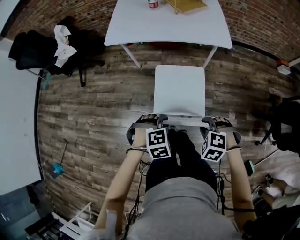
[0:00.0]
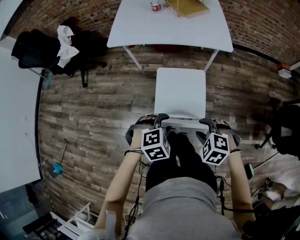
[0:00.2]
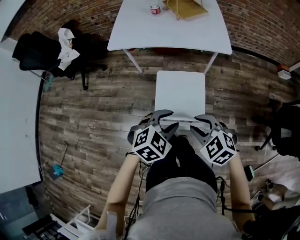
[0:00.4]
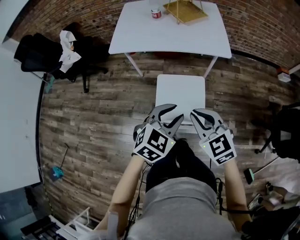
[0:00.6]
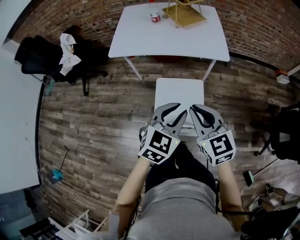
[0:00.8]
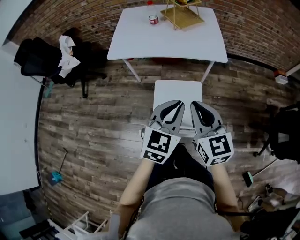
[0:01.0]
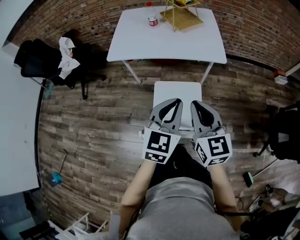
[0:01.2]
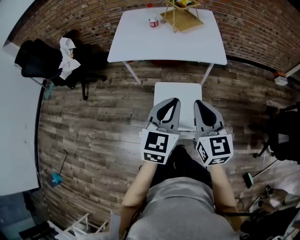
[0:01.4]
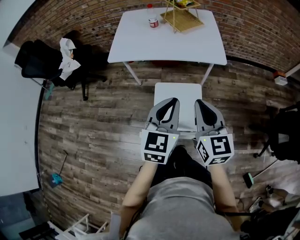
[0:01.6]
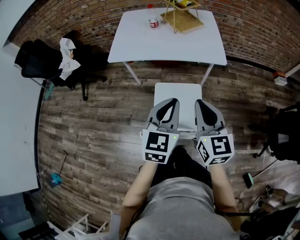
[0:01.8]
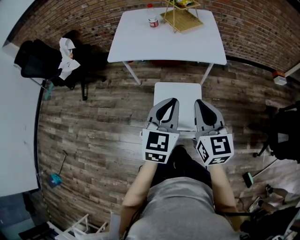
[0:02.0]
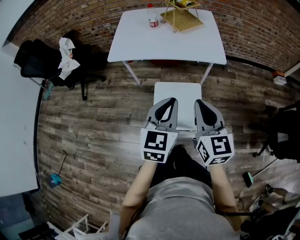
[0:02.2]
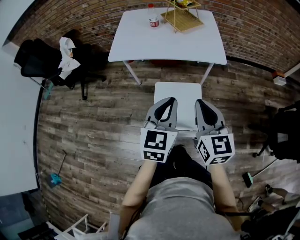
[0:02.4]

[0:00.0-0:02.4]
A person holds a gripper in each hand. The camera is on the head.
0:00.0 to 0:01.2: Both grippers move upward and forward, roughly 25 cm. The left gripper points its fingers some 50 degrees further upward, and closes, while the right gripper tips its fingers upward by about 60 degrees, and closes its fingers.
0:01.2 to 0:02.4: The grippers make only small movements.

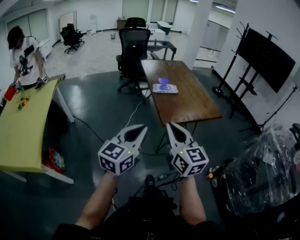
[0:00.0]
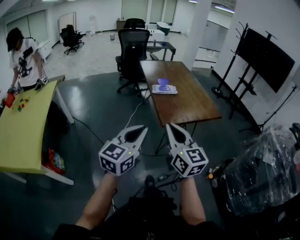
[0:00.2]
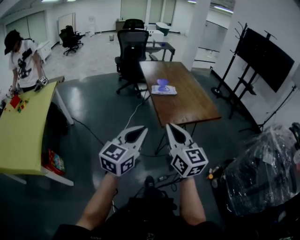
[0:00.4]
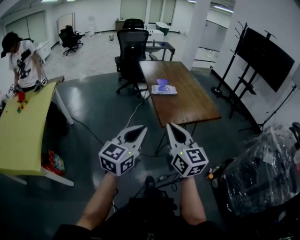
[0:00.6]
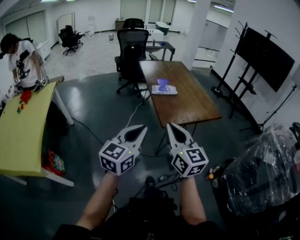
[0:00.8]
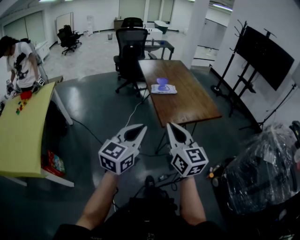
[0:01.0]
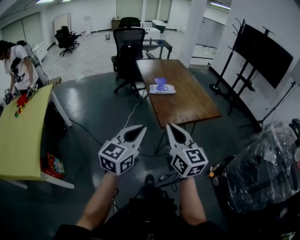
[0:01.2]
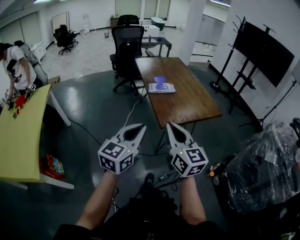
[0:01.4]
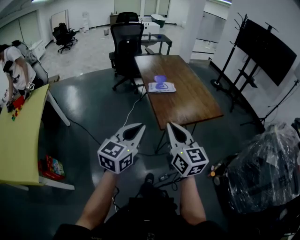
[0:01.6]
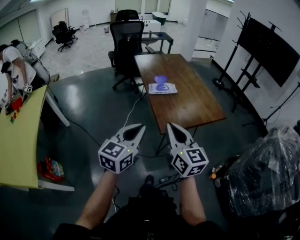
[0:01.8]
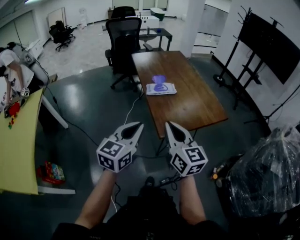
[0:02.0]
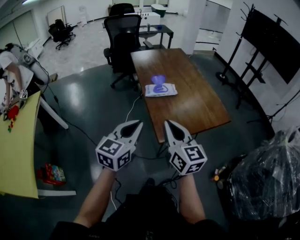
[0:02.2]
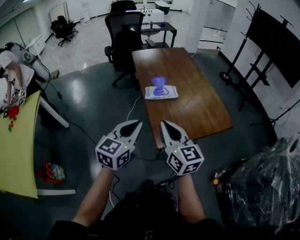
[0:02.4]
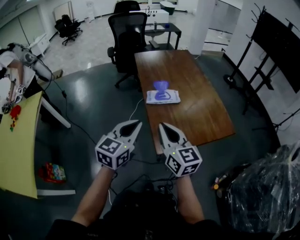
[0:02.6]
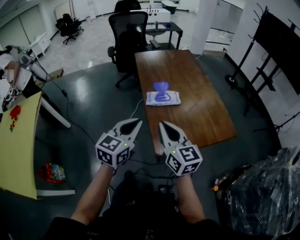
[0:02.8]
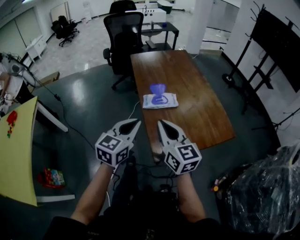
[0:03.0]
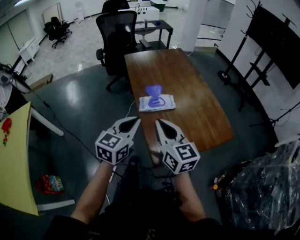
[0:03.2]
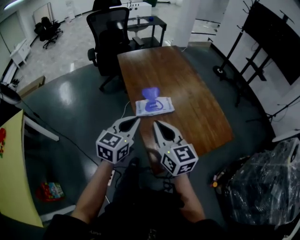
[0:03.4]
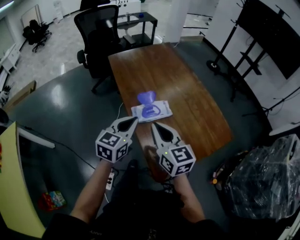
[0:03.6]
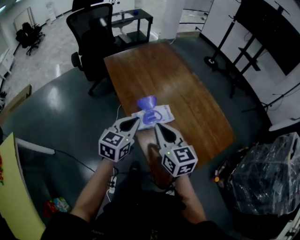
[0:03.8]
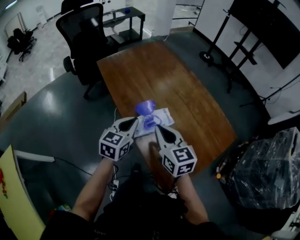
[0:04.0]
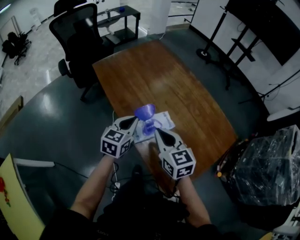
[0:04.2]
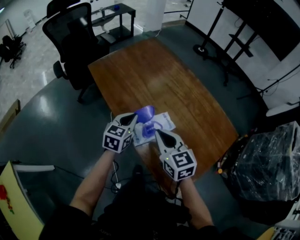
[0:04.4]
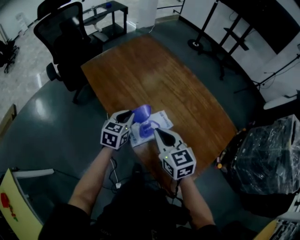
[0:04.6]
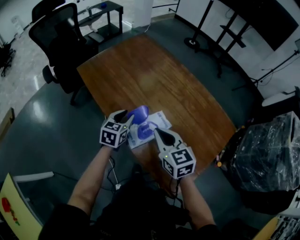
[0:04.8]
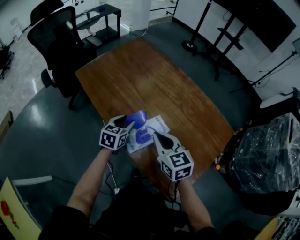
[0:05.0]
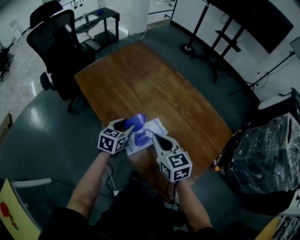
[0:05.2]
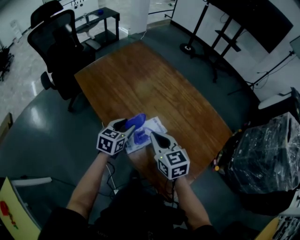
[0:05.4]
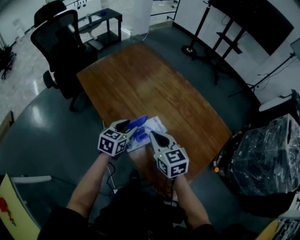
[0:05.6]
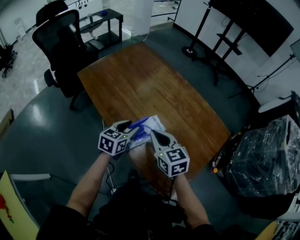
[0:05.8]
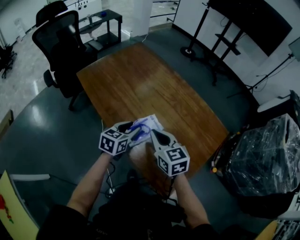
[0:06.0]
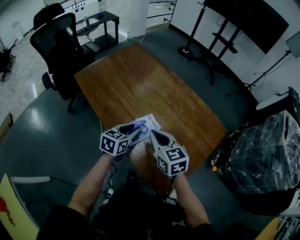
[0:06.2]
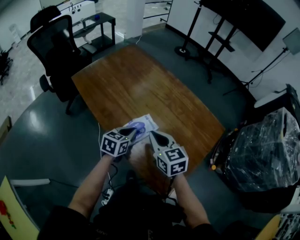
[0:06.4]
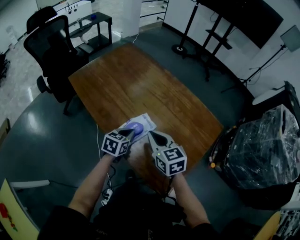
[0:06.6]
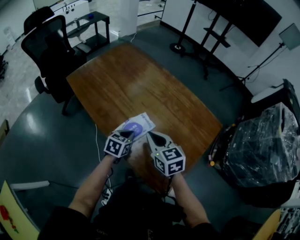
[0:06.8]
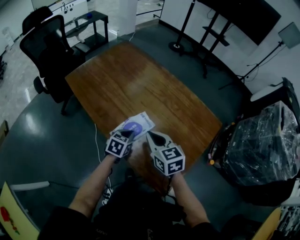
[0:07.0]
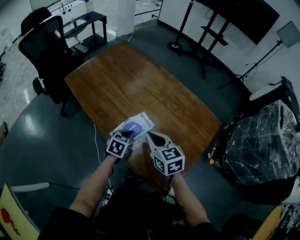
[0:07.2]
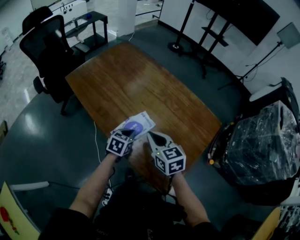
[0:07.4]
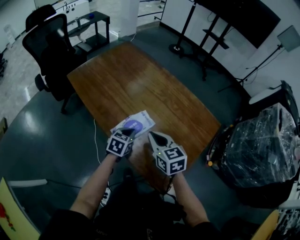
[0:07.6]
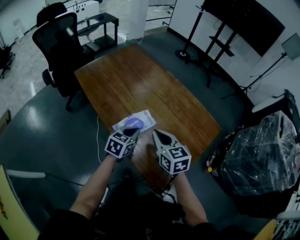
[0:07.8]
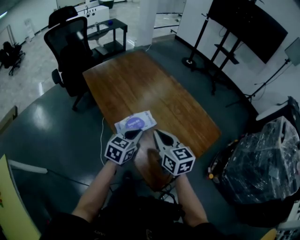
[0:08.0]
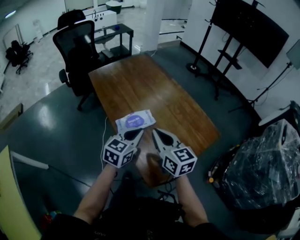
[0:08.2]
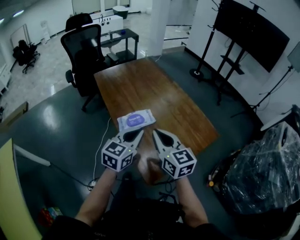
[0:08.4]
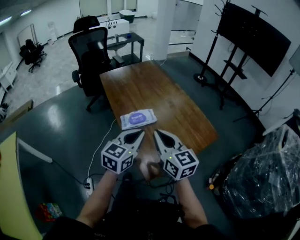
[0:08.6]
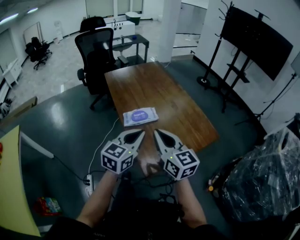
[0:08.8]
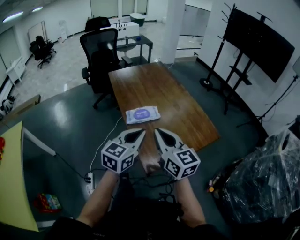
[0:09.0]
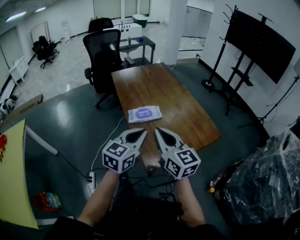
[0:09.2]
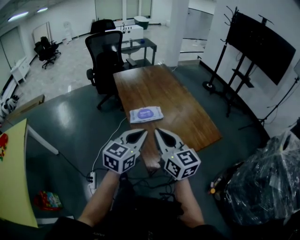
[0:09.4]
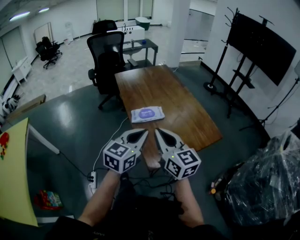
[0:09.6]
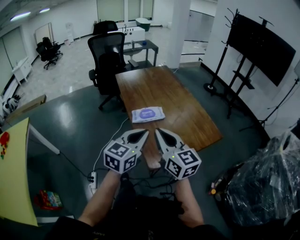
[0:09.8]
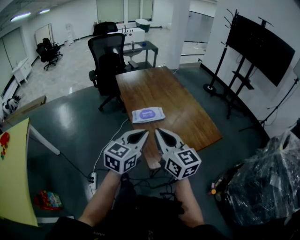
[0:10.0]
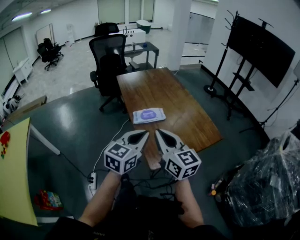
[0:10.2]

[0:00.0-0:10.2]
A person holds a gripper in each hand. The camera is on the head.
0:00.0 to 0:01.4: The left gripper moves forward, some 5 cm. The right gripper moves about 5 cm.
0:01.4 to 0:03.0: The grippers both shift forward by roughly 30 cm.
0:03.0 to 0:04.4: Both grippers travel together forward and downward, some 30 cm. The left gripper swivels approximately 20 degrees. The right gripper turns by about 30 degrees.
0:04.4 to 0:05.8: The left gripper ends up about 5 cm from where it was, and opens its fingers.
0:05.8 to 0:07.2: The left gripper shifts roughly 10 cm downward, and closes.
0:07.2 to 0:08.8: The left gripper moves upward and backward, approximately 30 cm, and tips its fingers upward by some 30 degrees. The right gripper goes some 25 cm backward and upward, and changes its angle by some 30 degrees.
0:08.8 to 0:10.2: The grippers both shift backward by approximately 5 cm.

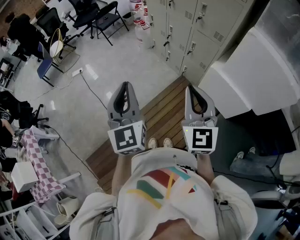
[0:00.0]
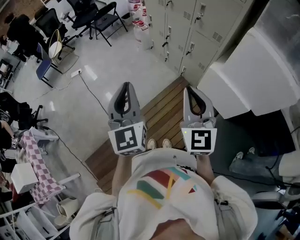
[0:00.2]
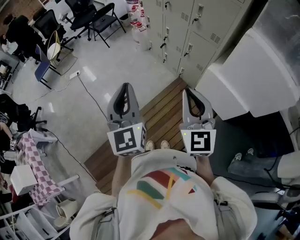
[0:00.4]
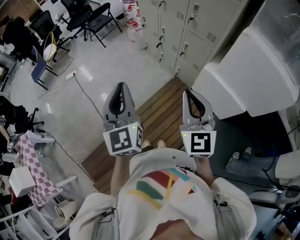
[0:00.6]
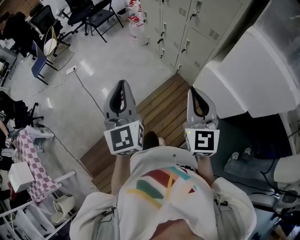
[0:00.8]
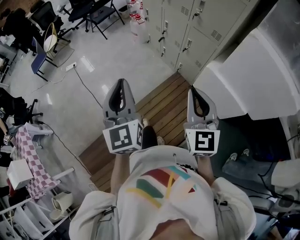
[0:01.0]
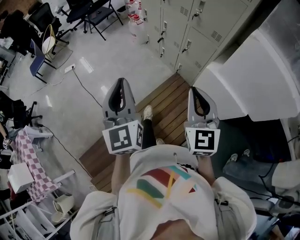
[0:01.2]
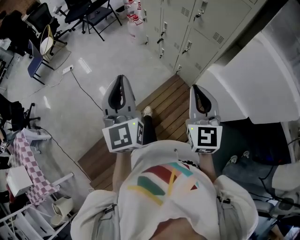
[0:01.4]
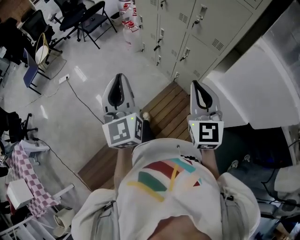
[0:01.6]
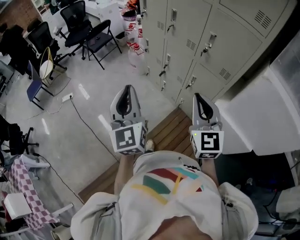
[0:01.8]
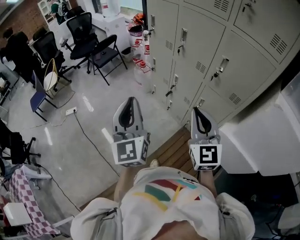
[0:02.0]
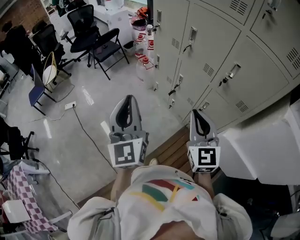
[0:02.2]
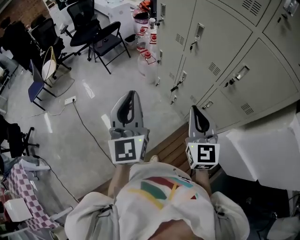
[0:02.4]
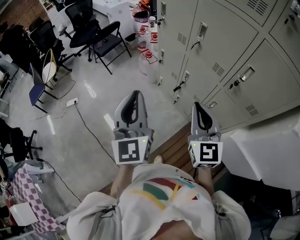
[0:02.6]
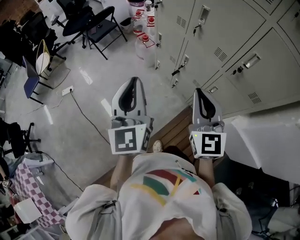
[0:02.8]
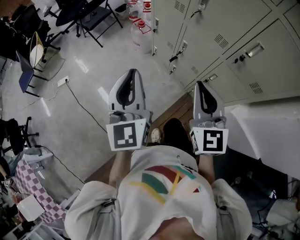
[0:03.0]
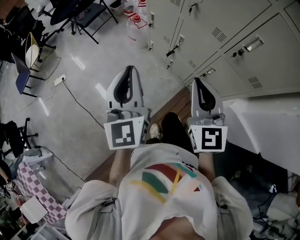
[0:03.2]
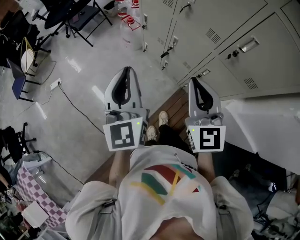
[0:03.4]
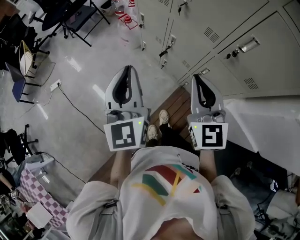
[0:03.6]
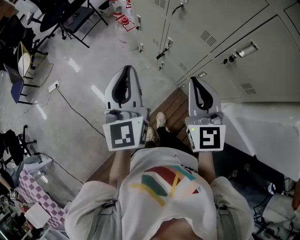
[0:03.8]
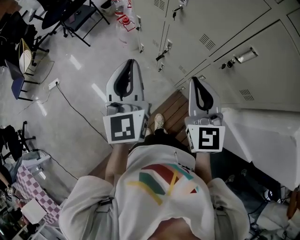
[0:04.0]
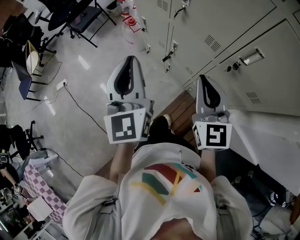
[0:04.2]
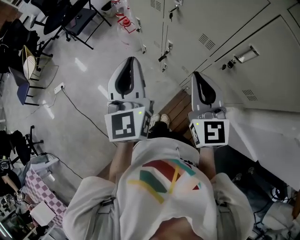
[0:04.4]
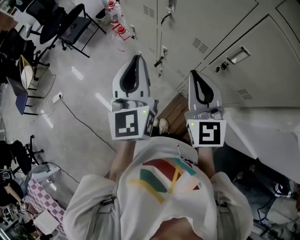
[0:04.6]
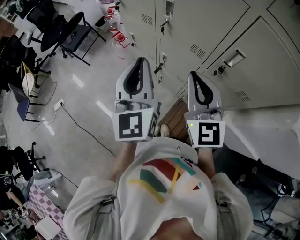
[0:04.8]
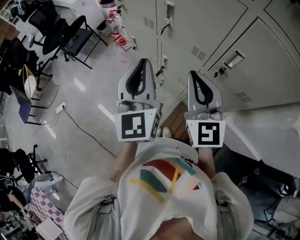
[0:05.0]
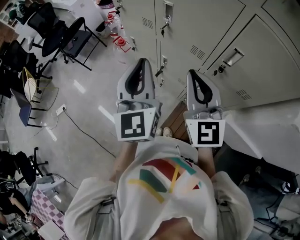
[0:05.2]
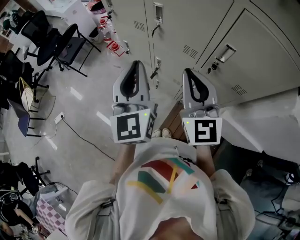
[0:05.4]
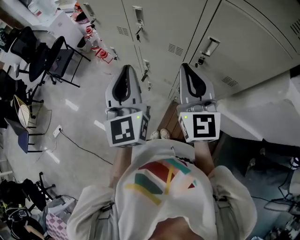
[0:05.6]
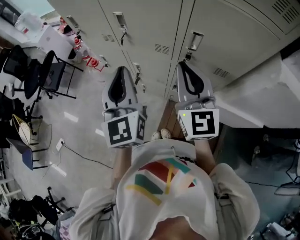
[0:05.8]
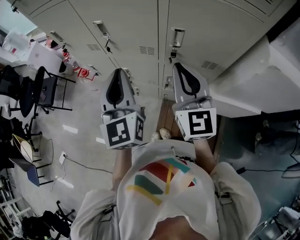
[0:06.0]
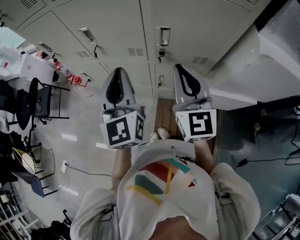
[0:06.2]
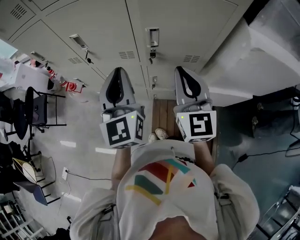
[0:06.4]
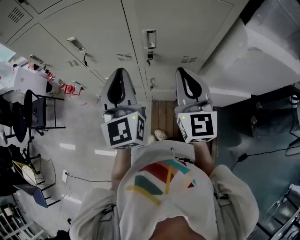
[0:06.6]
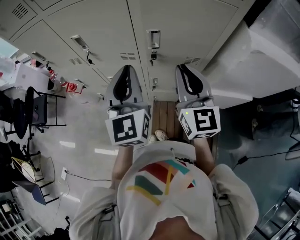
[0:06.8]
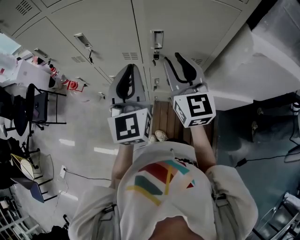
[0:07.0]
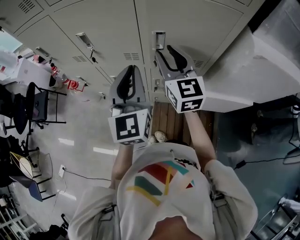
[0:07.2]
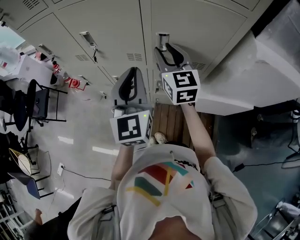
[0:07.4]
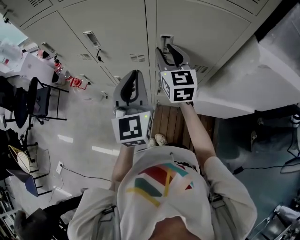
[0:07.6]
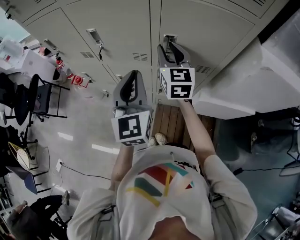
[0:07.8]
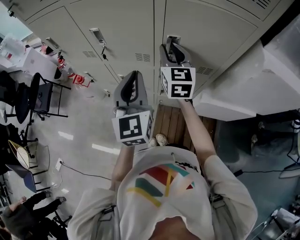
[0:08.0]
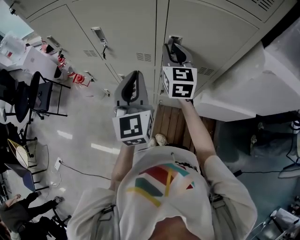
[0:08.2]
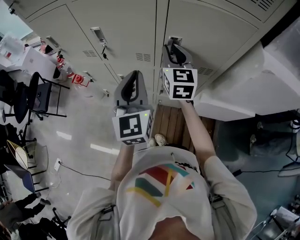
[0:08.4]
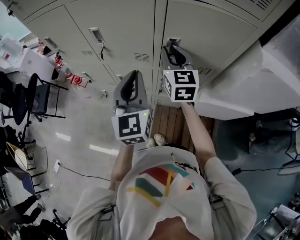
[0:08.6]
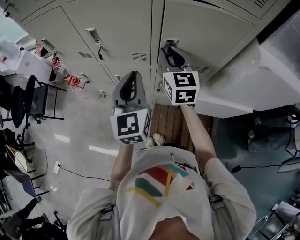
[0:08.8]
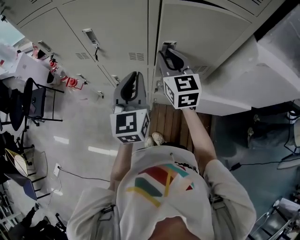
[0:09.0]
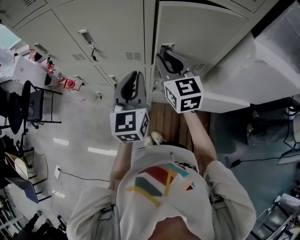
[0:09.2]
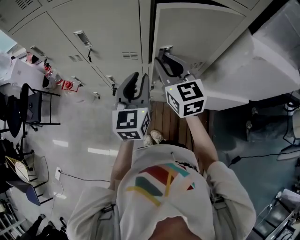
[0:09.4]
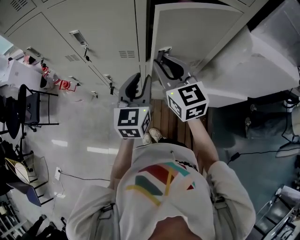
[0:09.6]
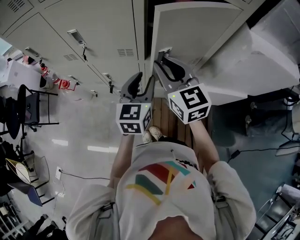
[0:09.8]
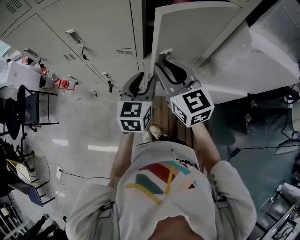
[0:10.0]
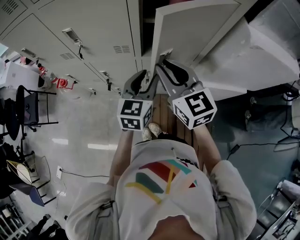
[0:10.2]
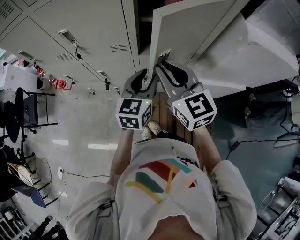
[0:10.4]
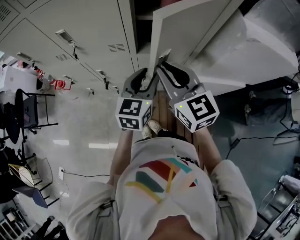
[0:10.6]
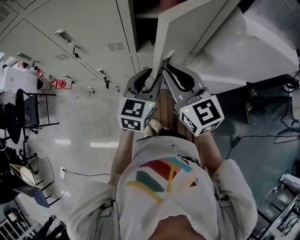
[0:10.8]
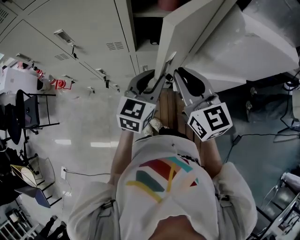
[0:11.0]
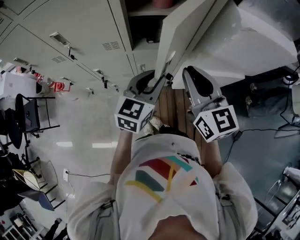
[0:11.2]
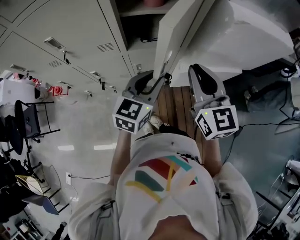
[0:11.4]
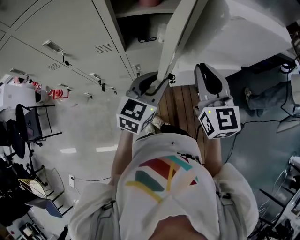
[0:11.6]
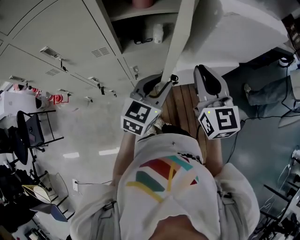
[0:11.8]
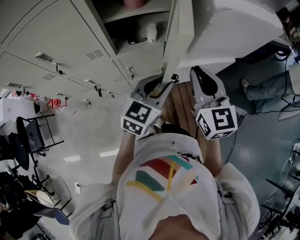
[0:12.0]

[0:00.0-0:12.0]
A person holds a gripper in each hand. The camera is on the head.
0:00.0 to 0:01.6: The left gripper shifts some 15 cm forward; the right gripper goes roughly 15 cm forward and to the right.
0:01.6 to 0:03.0: Both grippers travel together forward, about 30 cm.
0:03.0 to 0:04.4: Both grippers travel together forward and to the right, roughly 15 cm.
0:04.4 to 0:06.0: The right gripper shifts by about 10 cm, and turns by about 30 degrees, while the left gripper shifts by some 10 cm, and swivels about 20 degrees.
0:06.0 to 0:07.6: The right gripper is displaced forward by about 10 cm, and opens its fingers. Meanwhile the left gripper heads to the right, covering about 5 cm.
0:07.6 to 0:09.0: There are only small adjustments of the grippers.
0:09.0 to 0:10.4: The right gripper goes roughly 10 cm backward. The left gripper goes approximately 15 cm to the right and downward, rotates about 30 degrees, and opens.
0:10.4 to 0:12.0: The right gripper changes place by some 20 cm, and turns by about 30 degrees, while the left gripper moves approximately 15 cm, and swivels roughly 30 degrees.
